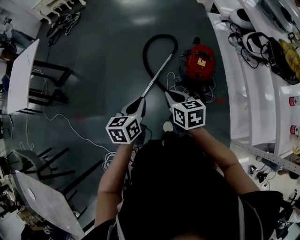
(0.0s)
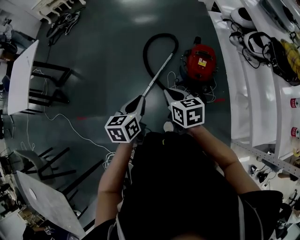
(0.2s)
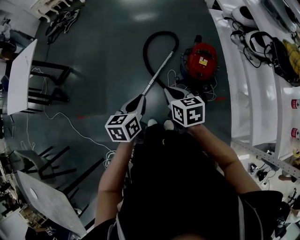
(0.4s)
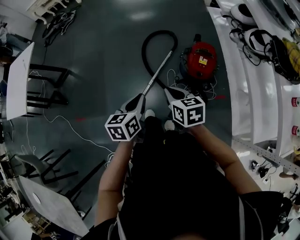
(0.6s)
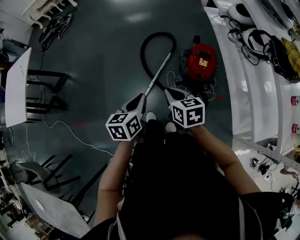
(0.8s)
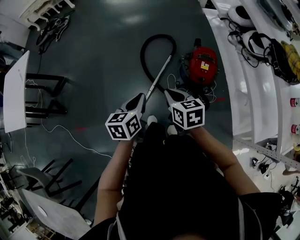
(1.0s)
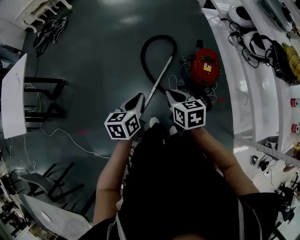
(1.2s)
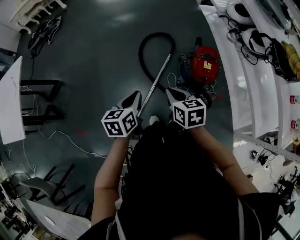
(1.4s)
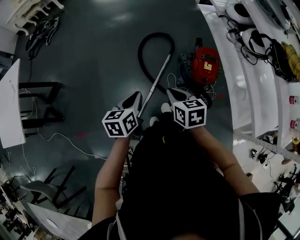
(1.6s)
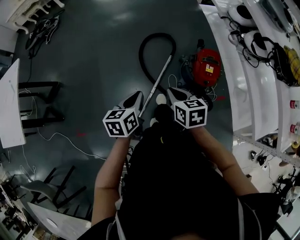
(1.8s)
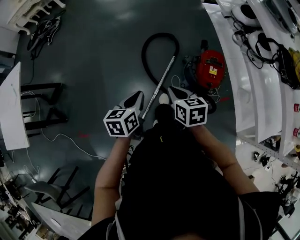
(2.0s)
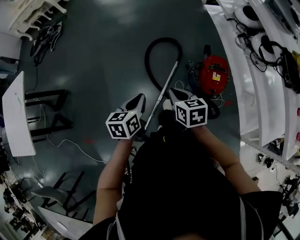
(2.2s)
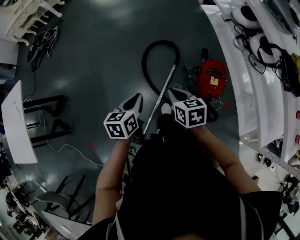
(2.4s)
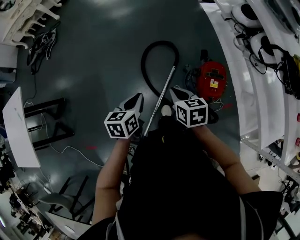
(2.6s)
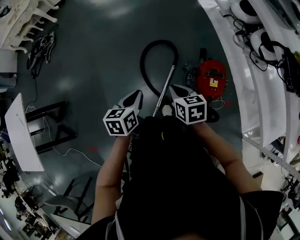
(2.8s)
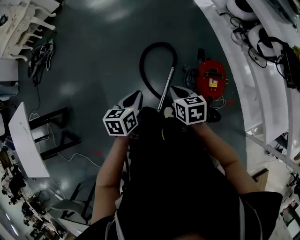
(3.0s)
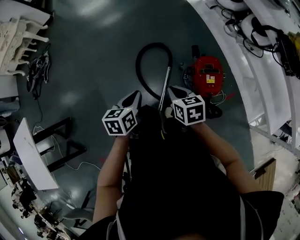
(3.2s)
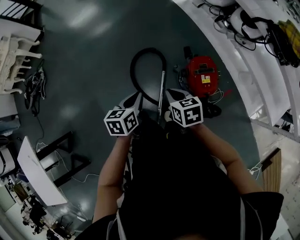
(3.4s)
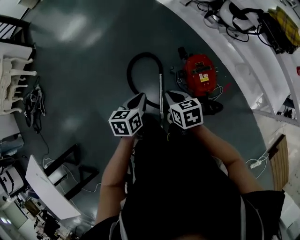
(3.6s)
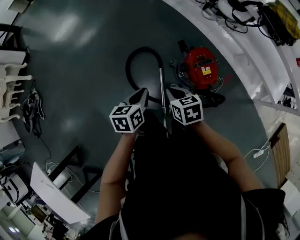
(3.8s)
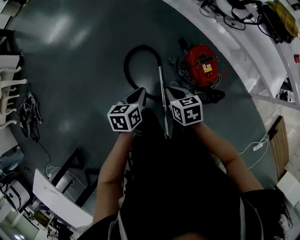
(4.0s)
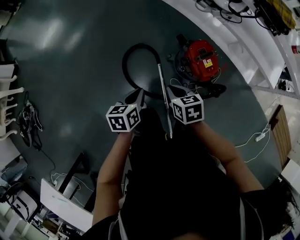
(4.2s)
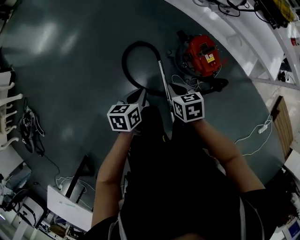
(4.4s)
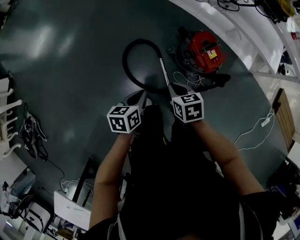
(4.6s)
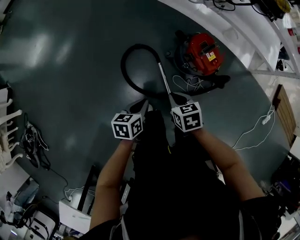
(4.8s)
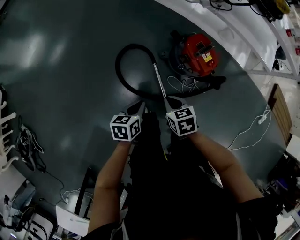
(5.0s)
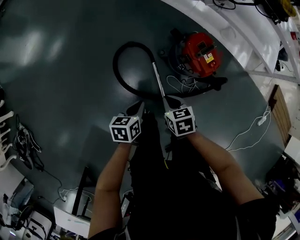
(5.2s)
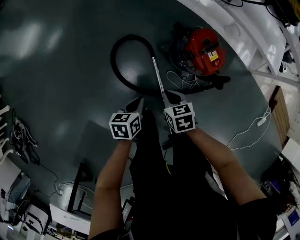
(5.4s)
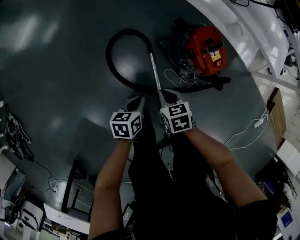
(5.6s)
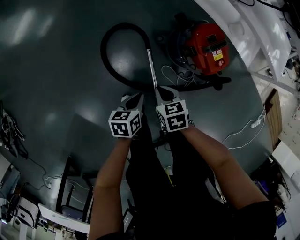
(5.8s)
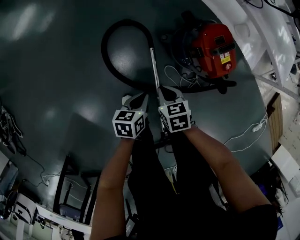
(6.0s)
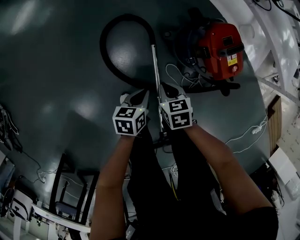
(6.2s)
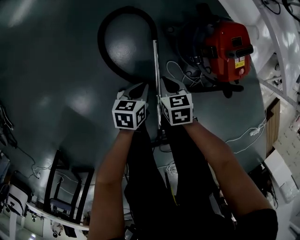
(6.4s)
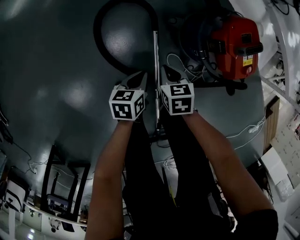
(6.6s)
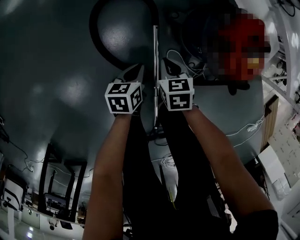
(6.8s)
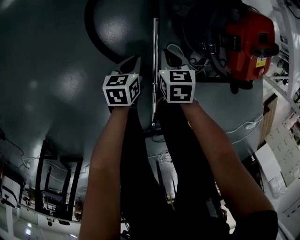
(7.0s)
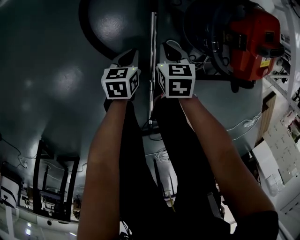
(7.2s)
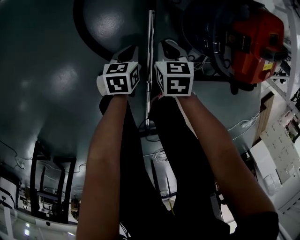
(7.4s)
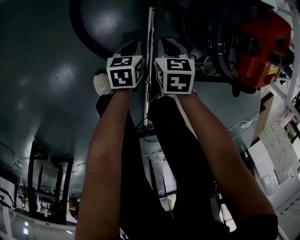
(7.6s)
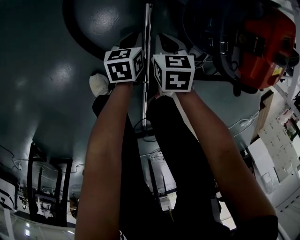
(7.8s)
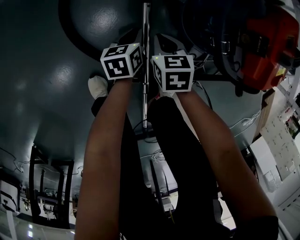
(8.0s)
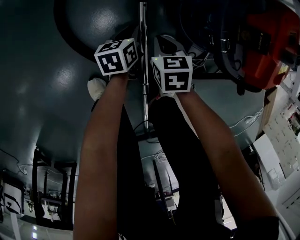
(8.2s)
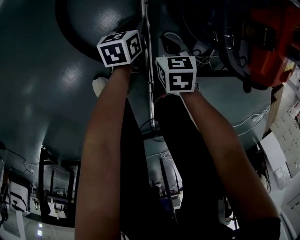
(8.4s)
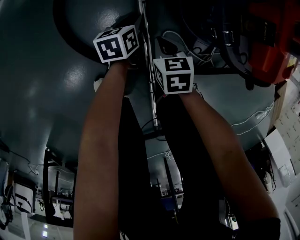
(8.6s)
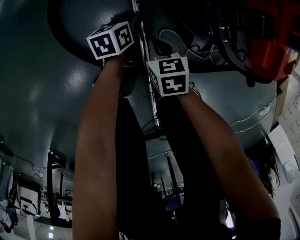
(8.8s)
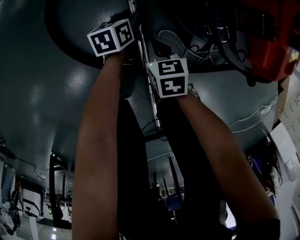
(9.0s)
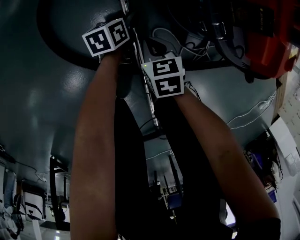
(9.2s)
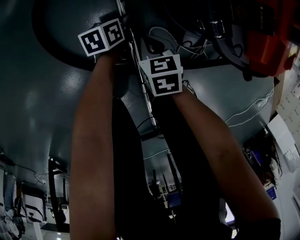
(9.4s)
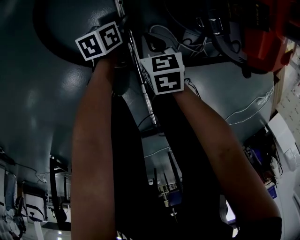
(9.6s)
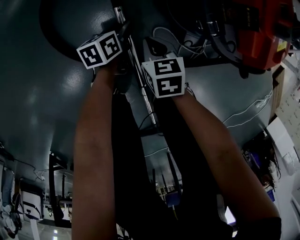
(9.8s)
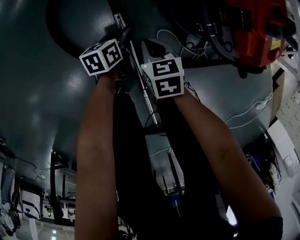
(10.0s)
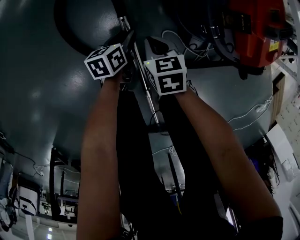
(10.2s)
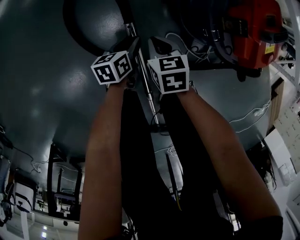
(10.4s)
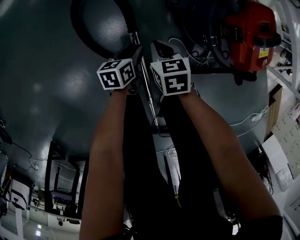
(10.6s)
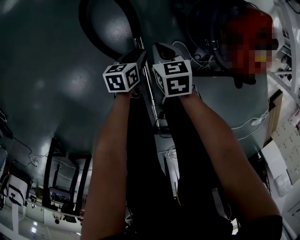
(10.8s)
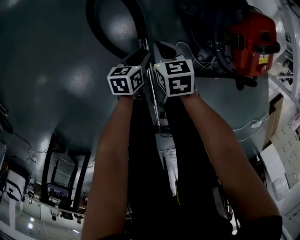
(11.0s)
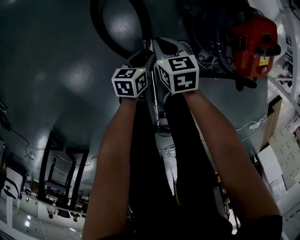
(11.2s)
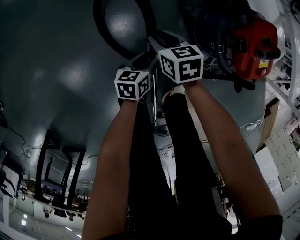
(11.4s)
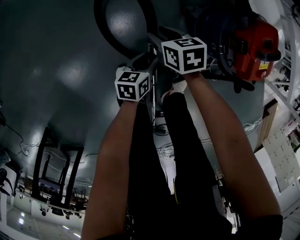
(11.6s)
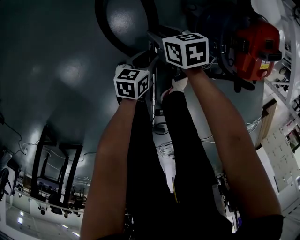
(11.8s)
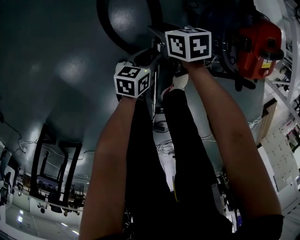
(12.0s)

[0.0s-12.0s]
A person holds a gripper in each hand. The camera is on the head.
0.0s to 1.6s: The grippers both shift forward and to the left by roughly 20 cm.
1.6s to 3.0s: Both grippers move forward, roughly 25 cm.
3.0s to 4.4s: The left gripper ends up roughly 15 cm from where it was, and changes its angle by about 40 degrees; the right gripper changes place by about 10 cm, and changes its angle by some 30 degrees.
4.4s to 6.0s: The two grippers go approximately 25 cm downward.
6.0s to 7.6s: The two grippers go roughly 30 cm downward.
7.6s to 9.0s: The left gripper goes roughly 10 cm forward and downward, and opens. Meanwhile the right gripper goes about 5 cm downward.
9.0s to 10.4s: The left gripper moves upward, backward and to the left, some 15 cm; the right gripper heads upward and to the left, covering about 15 cm.
10.4s to 12.0s: The left gripper travels upward and backward by roughly 10 cm. Meanwhile the right gripper shifts approximately 10 cm to the left and upward, rotates roughly 20 degrees, and opens.

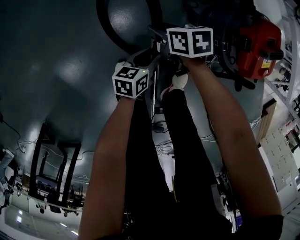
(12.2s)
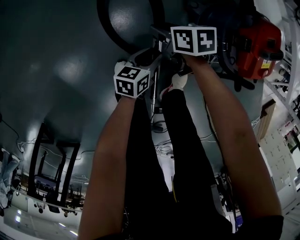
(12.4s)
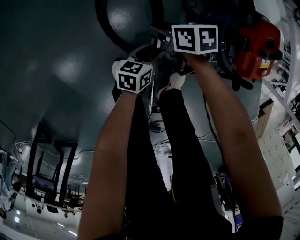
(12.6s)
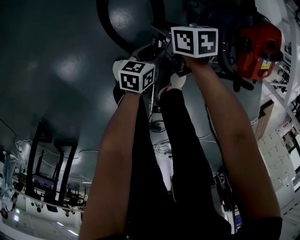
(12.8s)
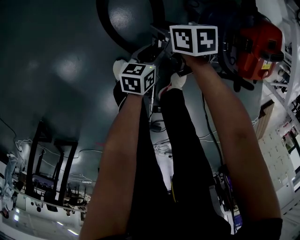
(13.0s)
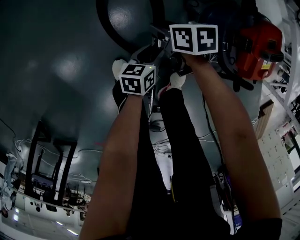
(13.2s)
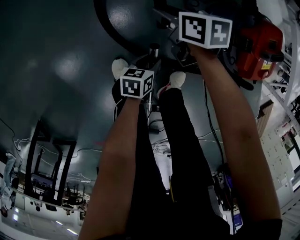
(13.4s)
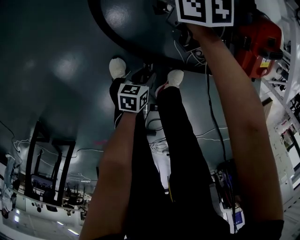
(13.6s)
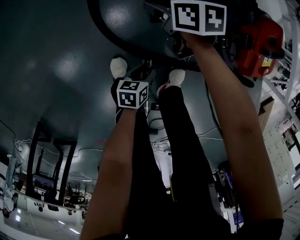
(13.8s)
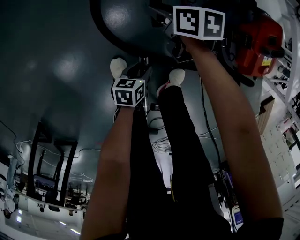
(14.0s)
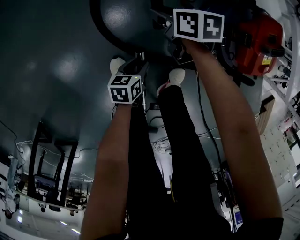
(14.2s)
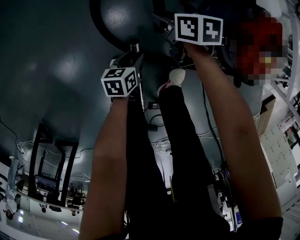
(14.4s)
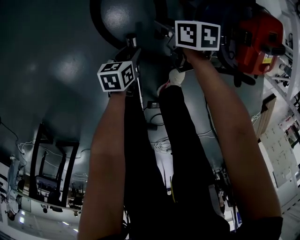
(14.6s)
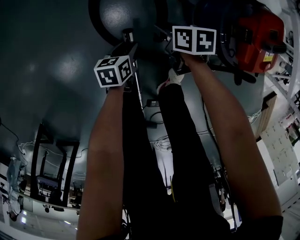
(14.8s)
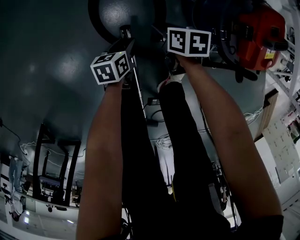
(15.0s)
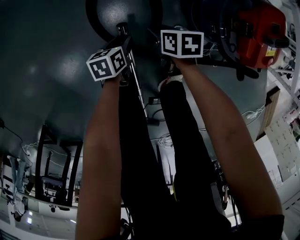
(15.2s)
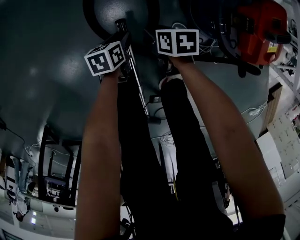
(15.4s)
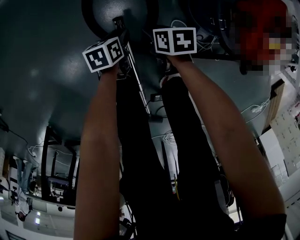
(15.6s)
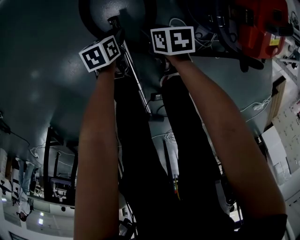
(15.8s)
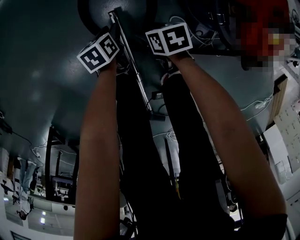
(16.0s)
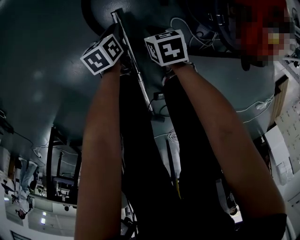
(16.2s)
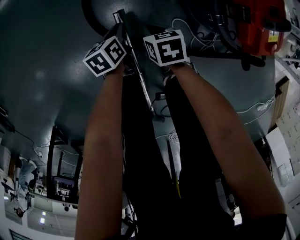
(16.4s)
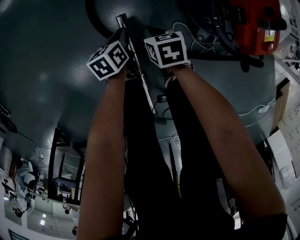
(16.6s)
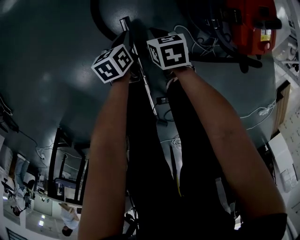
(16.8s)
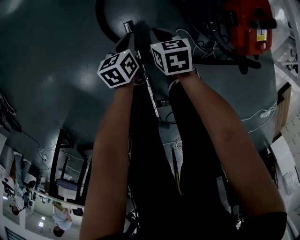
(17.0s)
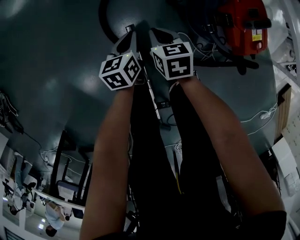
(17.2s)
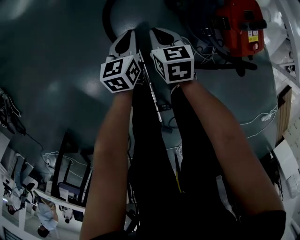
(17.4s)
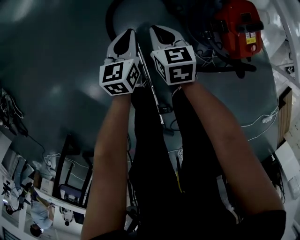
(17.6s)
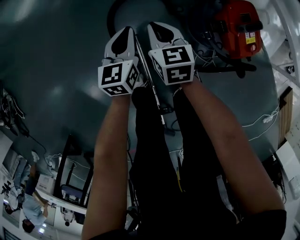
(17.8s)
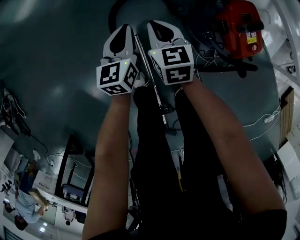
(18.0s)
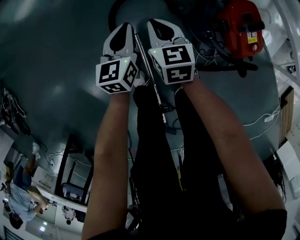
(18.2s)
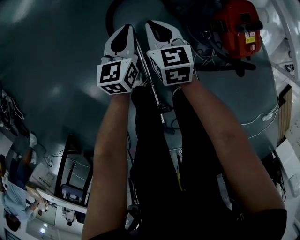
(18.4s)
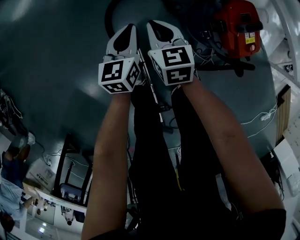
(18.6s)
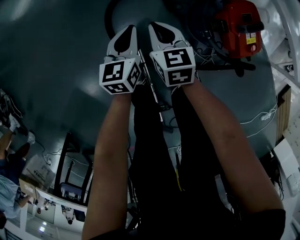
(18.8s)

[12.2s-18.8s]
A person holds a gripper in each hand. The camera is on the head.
12.2s to 13.8s: The right gripper shifts some 5 cm forward, while the left gripper shifts about 10 cm backward.
13.8s to 15.4s: The left gripper heads forward, covering about 10 cm; the right gripper shifts roughly 15 cm backward and downward.
15.4s to 17.2s: Both grippers travel together upward, roughly 15 cm. The right gripper changes its angle by roughly 30 degrees, and closes; the left gripper swivels approximately 20 degrees, and closes its fingers.
17.2s to 18.8s: The two grippers go roughly 10 cm upward and forward.

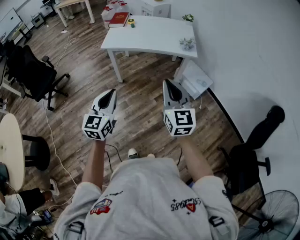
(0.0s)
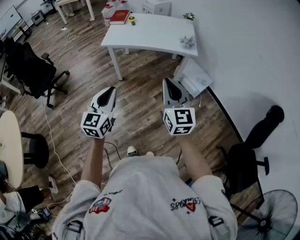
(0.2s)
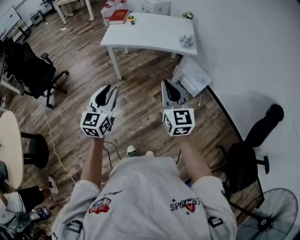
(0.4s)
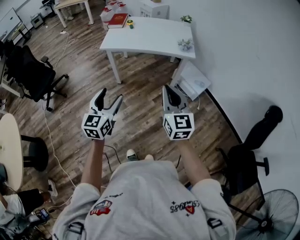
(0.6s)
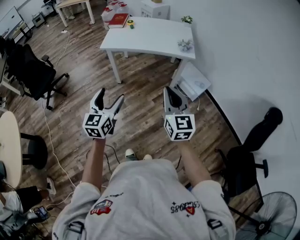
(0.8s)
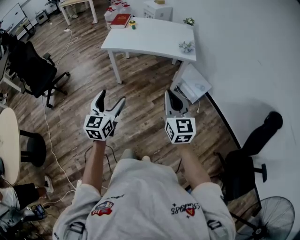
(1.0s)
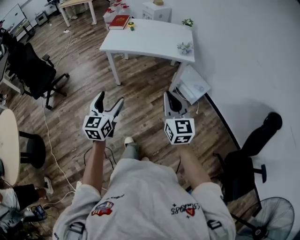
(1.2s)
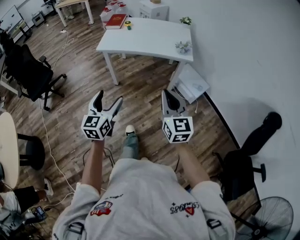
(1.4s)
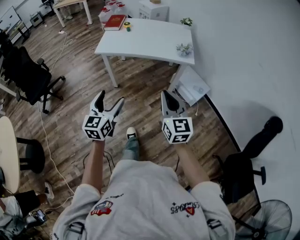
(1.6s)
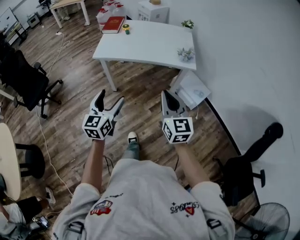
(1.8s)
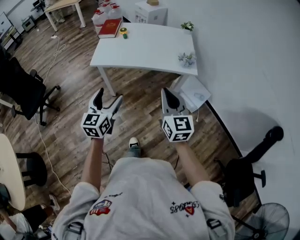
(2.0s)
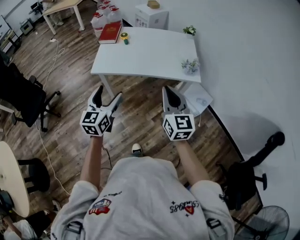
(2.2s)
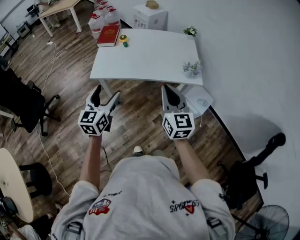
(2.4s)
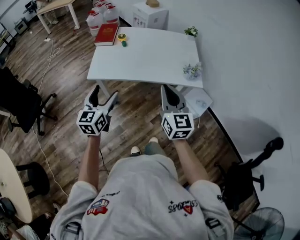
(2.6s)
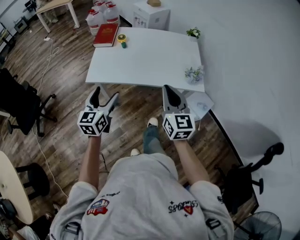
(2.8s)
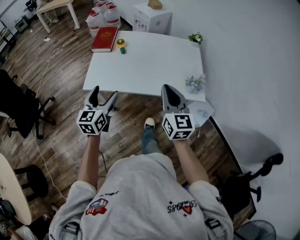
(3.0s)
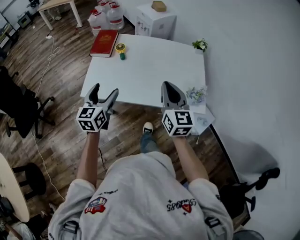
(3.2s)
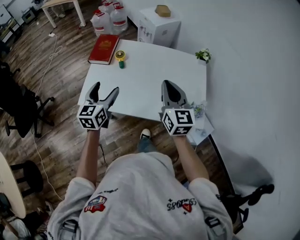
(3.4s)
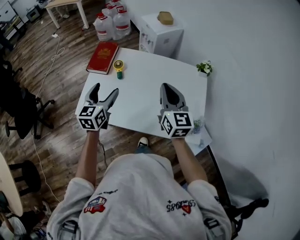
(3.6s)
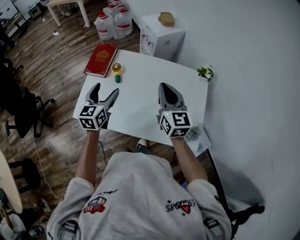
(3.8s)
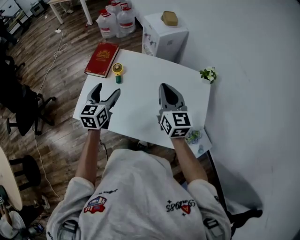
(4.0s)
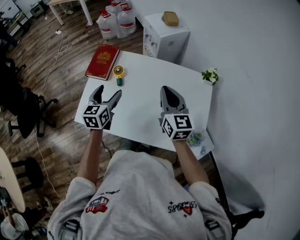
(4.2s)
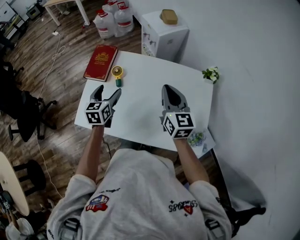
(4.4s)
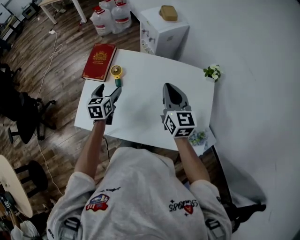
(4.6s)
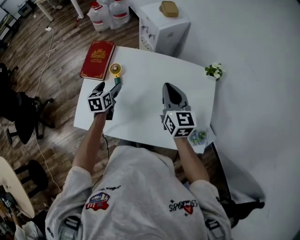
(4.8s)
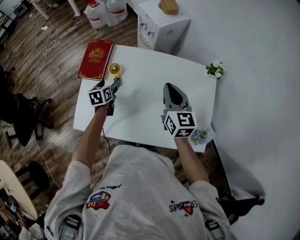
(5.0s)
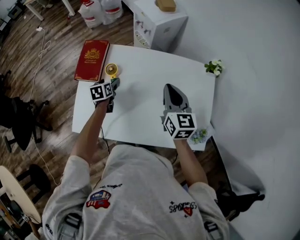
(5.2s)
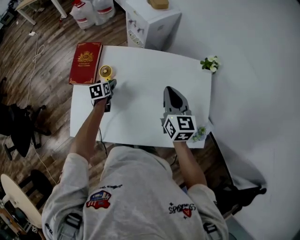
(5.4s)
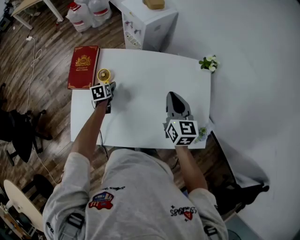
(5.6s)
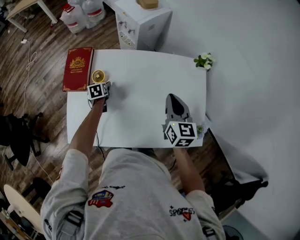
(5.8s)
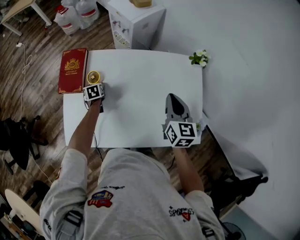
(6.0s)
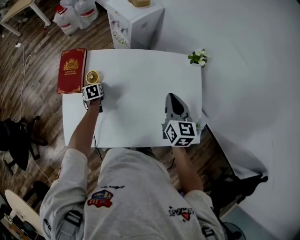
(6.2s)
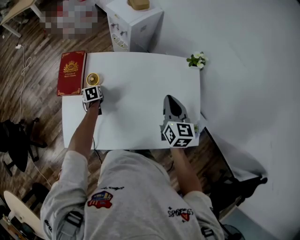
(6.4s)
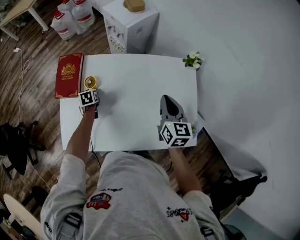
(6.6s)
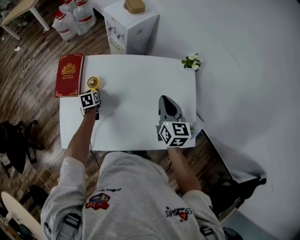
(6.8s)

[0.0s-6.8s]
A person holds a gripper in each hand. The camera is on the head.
0.0s to 1.4s: The left gripper changes place by about 5 cm, and opens its fingers; the right gripper ends up some 5 cm from where it was.
1.4s to 2.8s: Both grippers are carried forward, about 50 cm.
2.8s to 4.0s: The pair of grippers is taken forward, some 40 cm.
4.0s to 5.4s: The right gripper goes some 15 cm forward and downward. Meanwhile the left gripper travels downward and forward by roughly 35 cm, and tips its fingers downward by roughly 30 degrees.
5.4s to 6.8s: The right gripper heads to the right, covering roughly 5 cm, while the left gripper closes.
